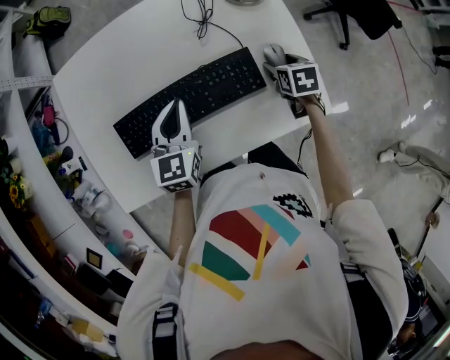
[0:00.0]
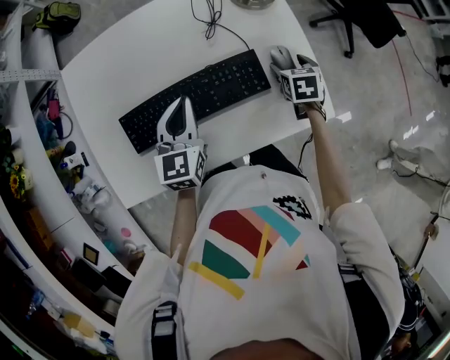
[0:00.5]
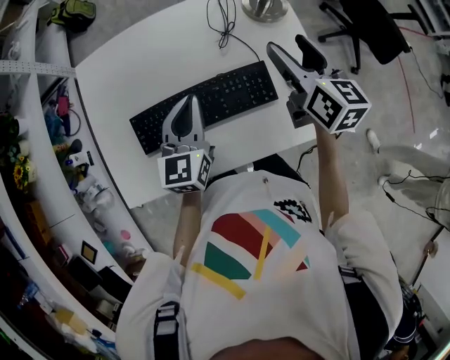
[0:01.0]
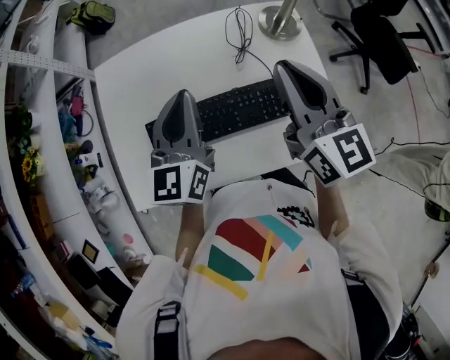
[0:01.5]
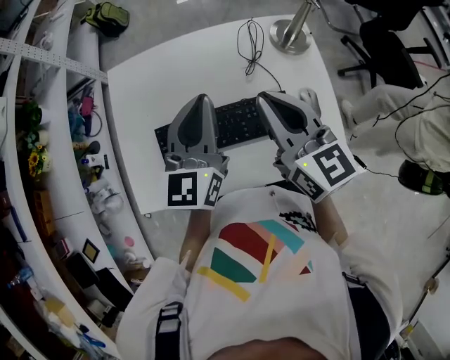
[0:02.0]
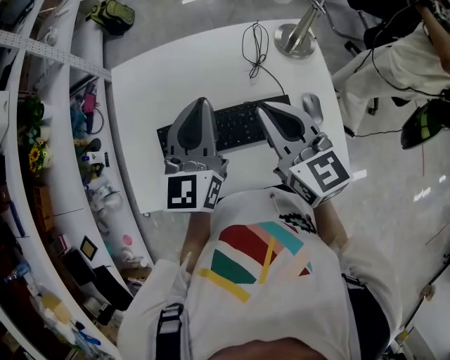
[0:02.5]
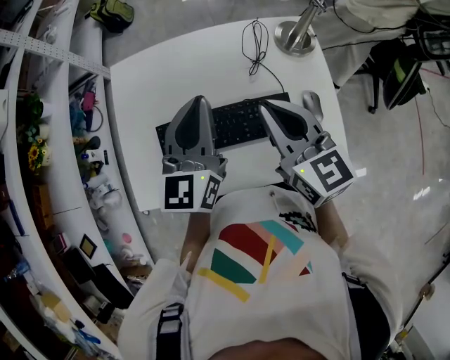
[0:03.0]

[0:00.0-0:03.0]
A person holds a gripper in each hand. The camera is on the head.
0:00.0 to 0:01.5: The left gripper heads upward, covering approximately 15 cm, and changes its angle by approximately 20 degrees. Meanwhile the right gripper is displaced upward and to the left by approximately 35 cm, tilts its fingers about 60 degrees upward, and closes.
0:01.5 to 0:03.0: The right gripper is displaced to the left by roughly 5 cm.

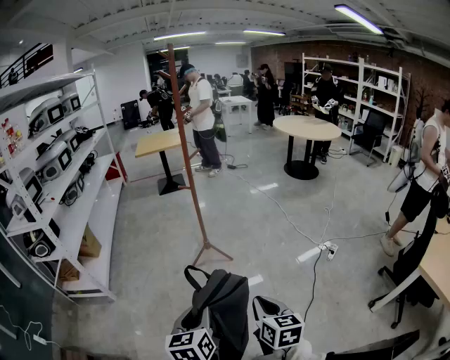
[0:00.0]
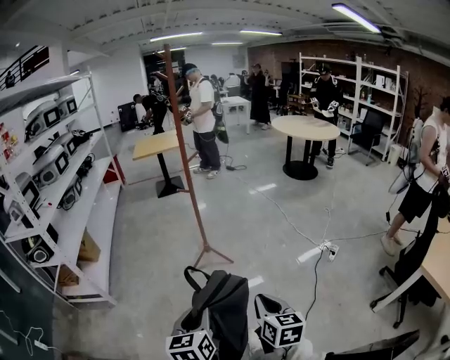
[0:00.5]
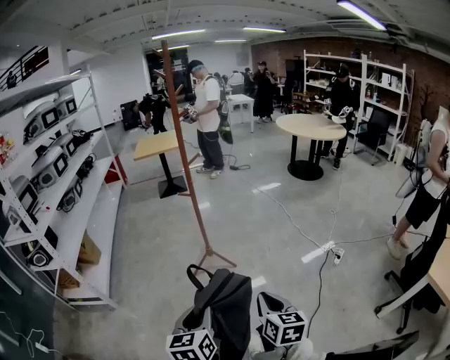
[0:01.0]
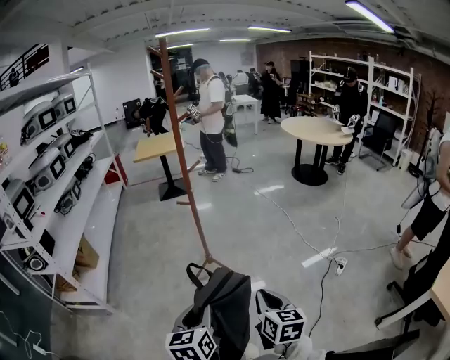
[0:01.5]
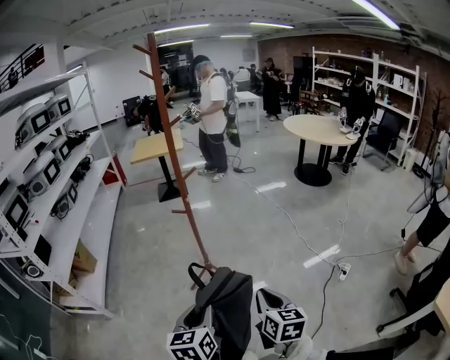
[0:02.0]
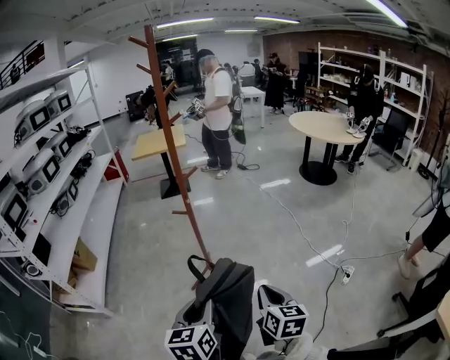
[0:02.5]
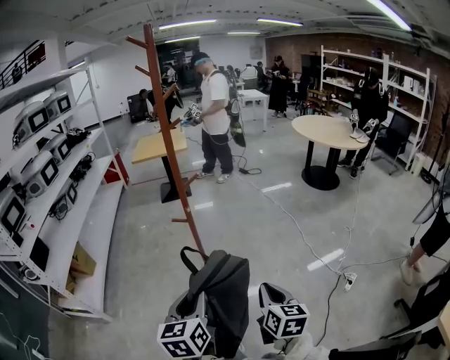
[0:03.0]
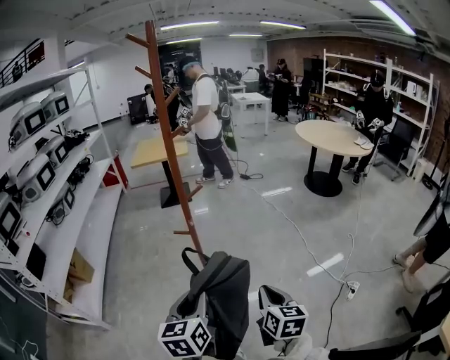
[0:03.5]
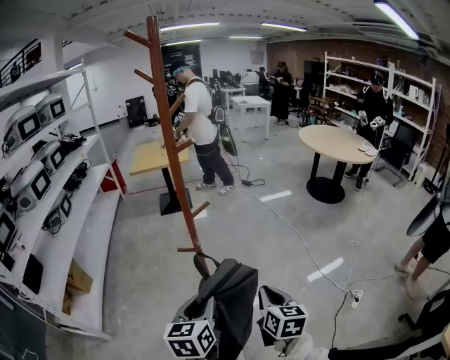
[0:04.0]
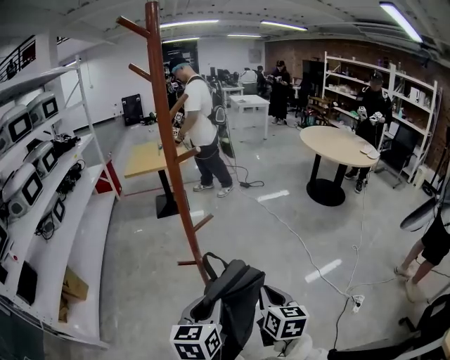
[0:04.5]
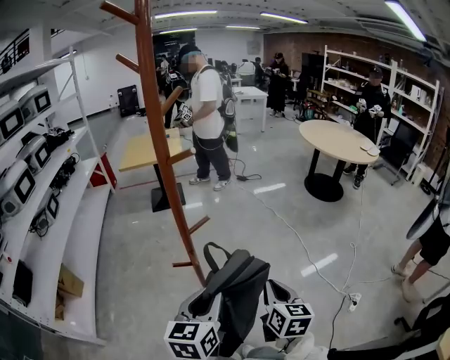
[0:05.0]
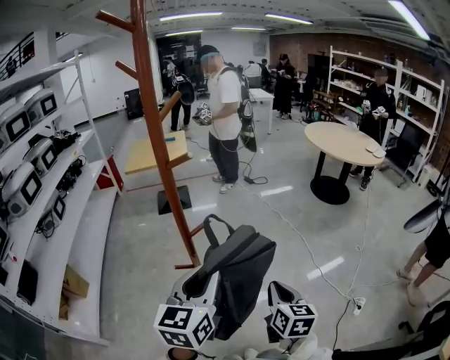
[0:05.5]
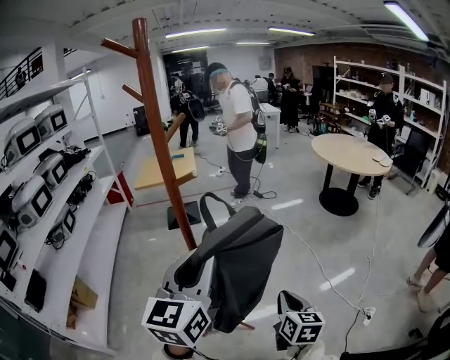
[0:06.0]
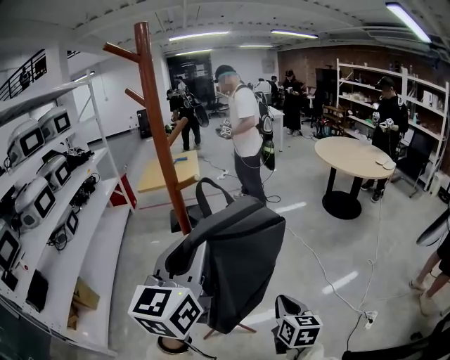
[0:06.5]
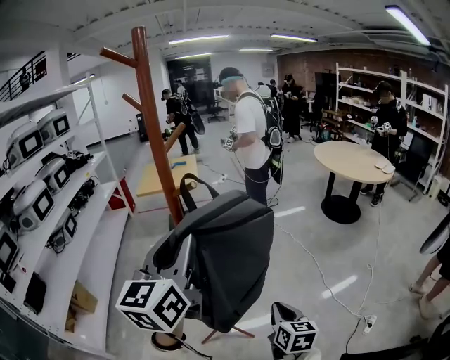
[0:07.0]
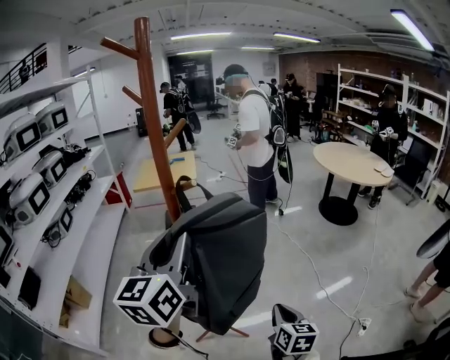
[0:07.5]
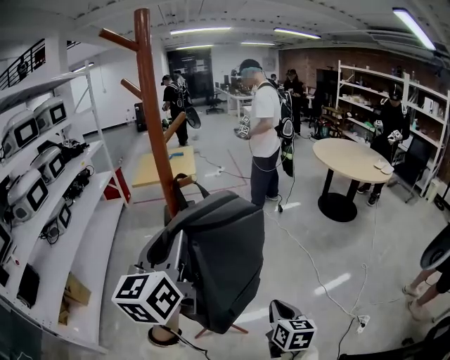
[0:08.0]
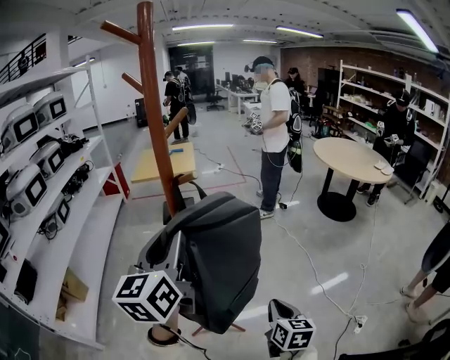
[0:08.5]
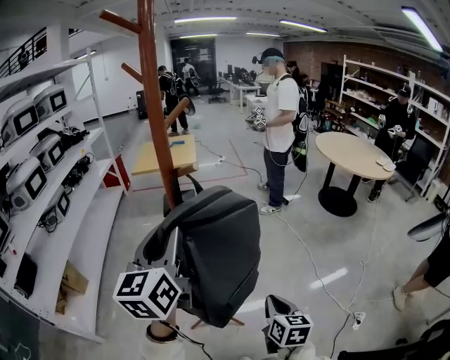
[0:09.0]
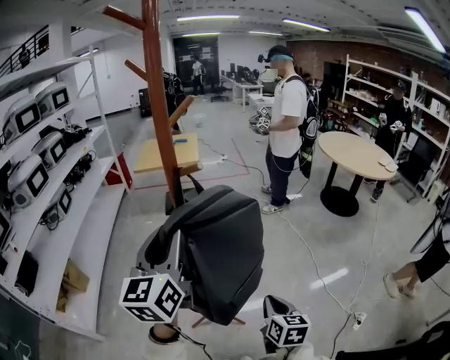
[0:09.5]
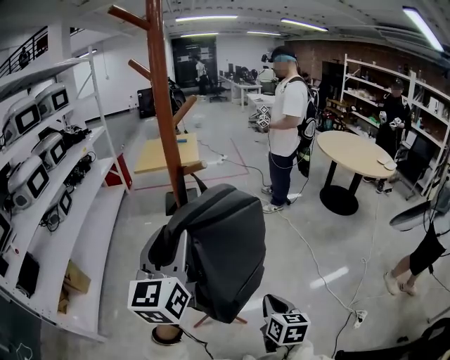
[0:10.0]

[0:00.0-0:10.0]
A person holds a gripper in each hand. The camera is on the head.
0:00.0 to 0:02.0: The grippers both shift forward by about 25 cm.
0:02.0 to 0:04.0: The grippers both shift forward by some 25 cm.
0:04.0 to 0:06.0: The right gripper is displaced forward by about 10 cm. The left gripper is displaced upward and forward by approximately 25 cm, and swivels about 30 degrees.
0:06.0 to 0:08.0: The left gripper heads to the left and forward, covering roughly 10 cm.
0:08.0 to 0:10.0: The grippers stay close to where they were, moving slightly.

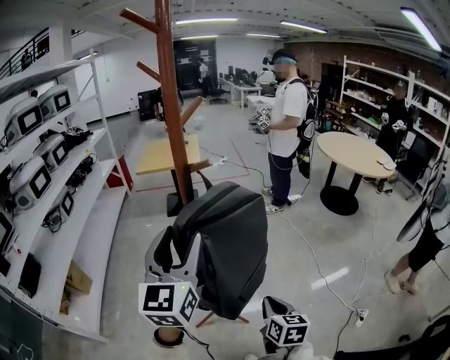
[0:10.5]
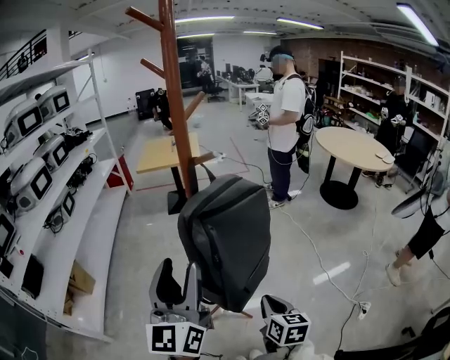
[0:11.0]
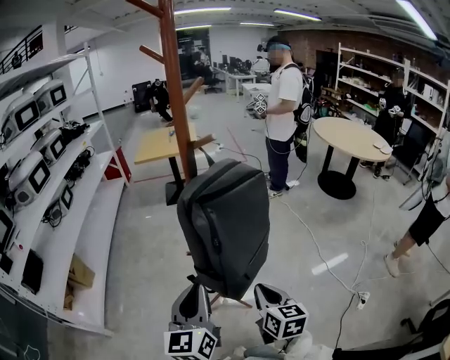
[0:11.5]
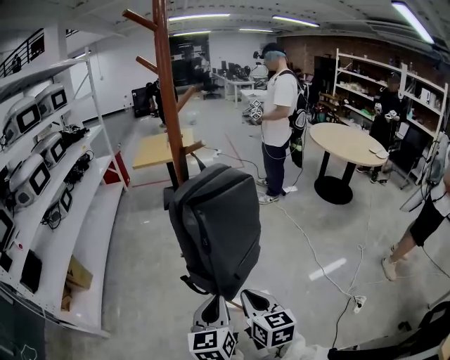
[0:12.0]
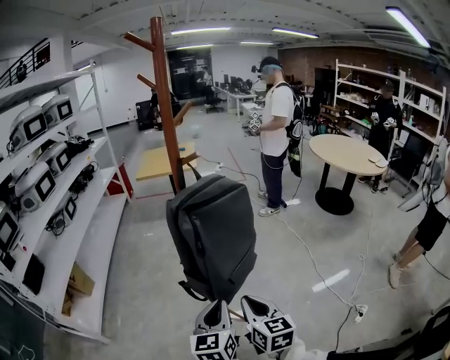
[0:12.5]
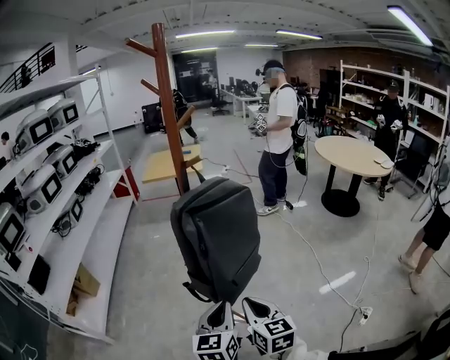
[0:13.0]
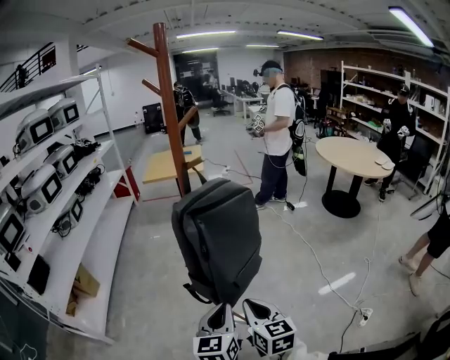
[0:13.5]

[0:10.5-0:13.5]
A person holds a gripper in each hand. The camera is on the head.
0:10.5 to 0:12.0: The left gripper moves downward and backward, roughly 25 cm, rotates approximately 30 degrees, and closes its fingers, while the right gripper moves to the left, some 5 cm.
0:12.0 to 0:13.5: There are only small adjustments of the grippers.

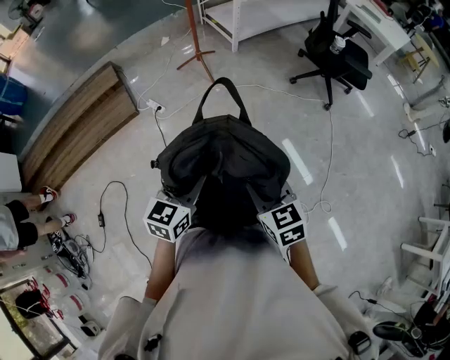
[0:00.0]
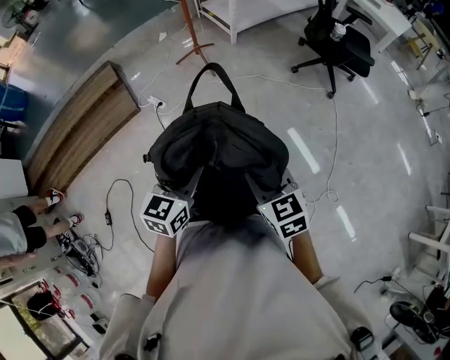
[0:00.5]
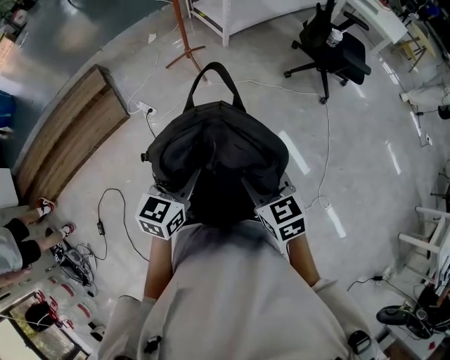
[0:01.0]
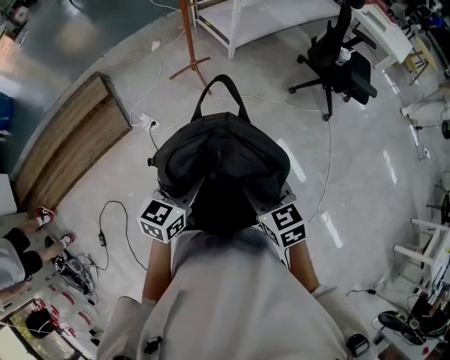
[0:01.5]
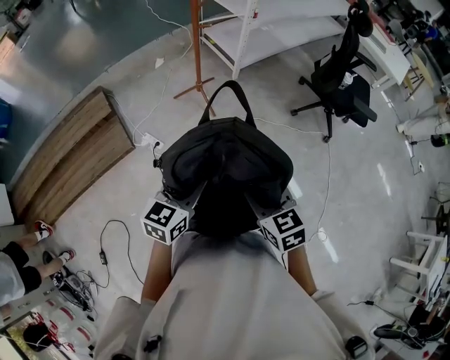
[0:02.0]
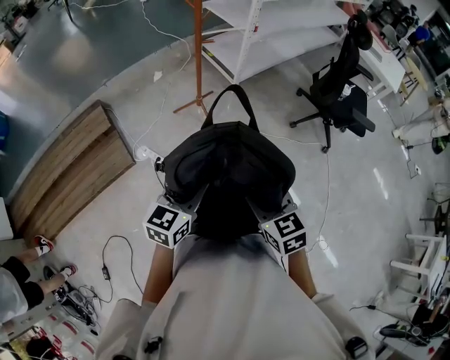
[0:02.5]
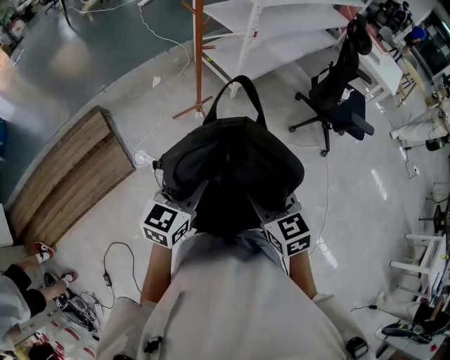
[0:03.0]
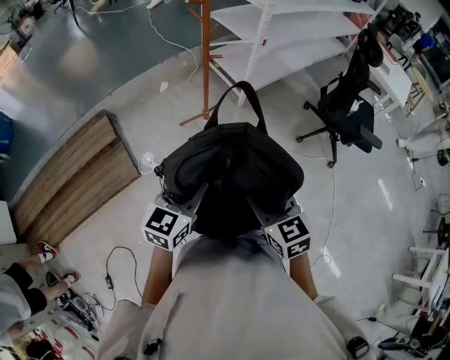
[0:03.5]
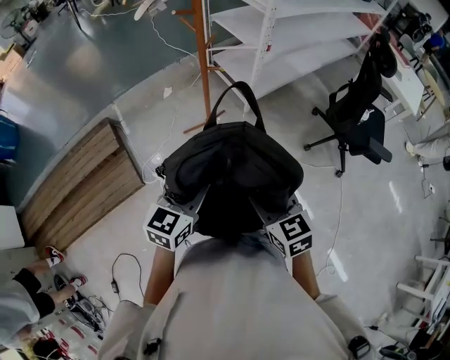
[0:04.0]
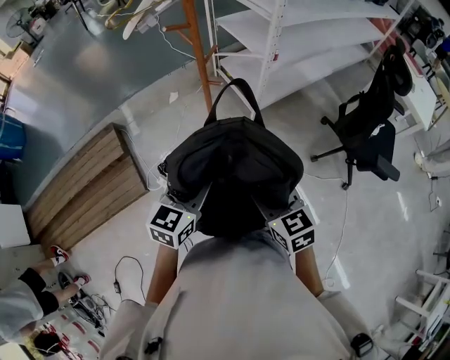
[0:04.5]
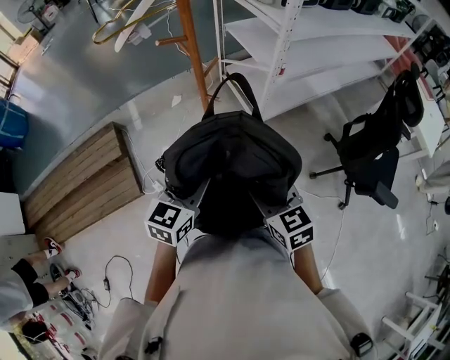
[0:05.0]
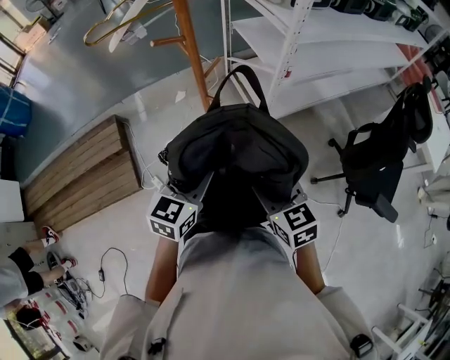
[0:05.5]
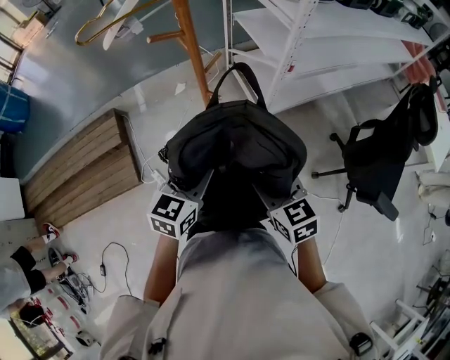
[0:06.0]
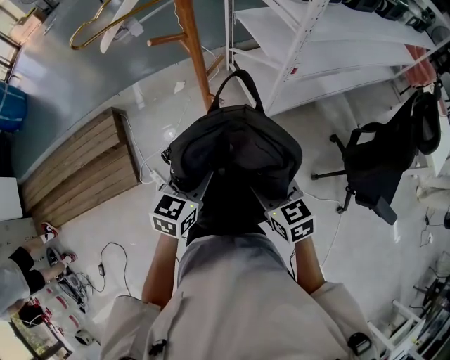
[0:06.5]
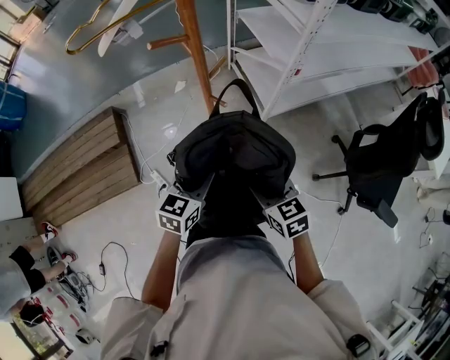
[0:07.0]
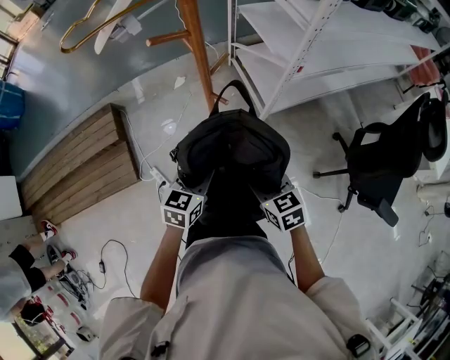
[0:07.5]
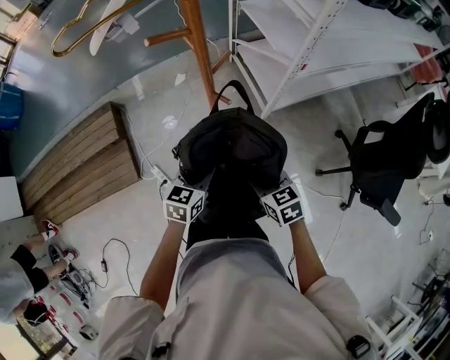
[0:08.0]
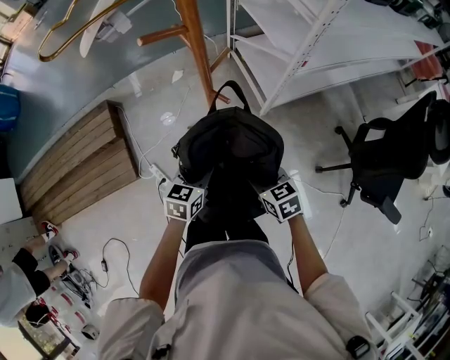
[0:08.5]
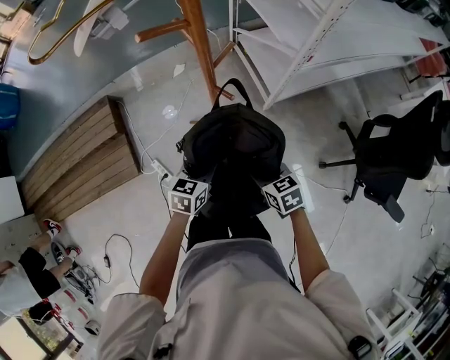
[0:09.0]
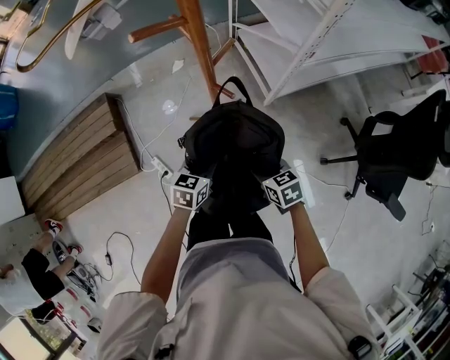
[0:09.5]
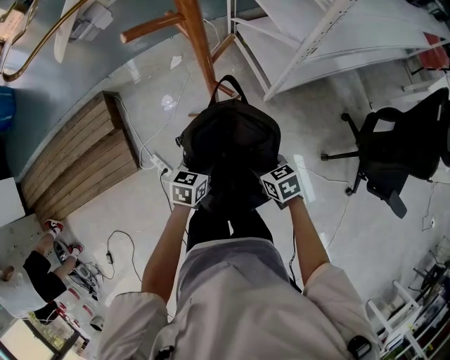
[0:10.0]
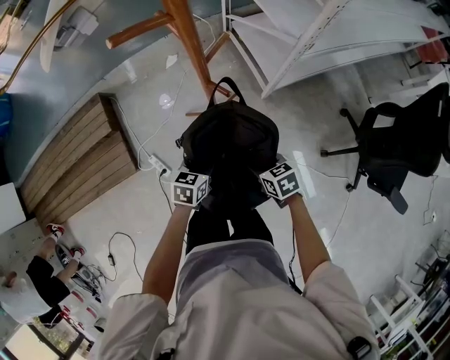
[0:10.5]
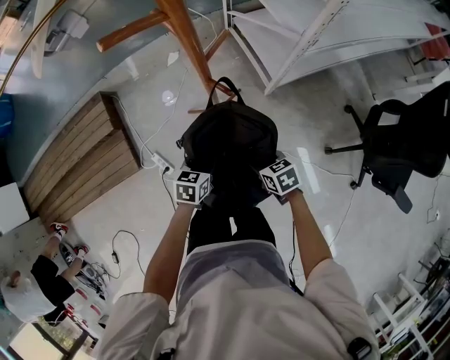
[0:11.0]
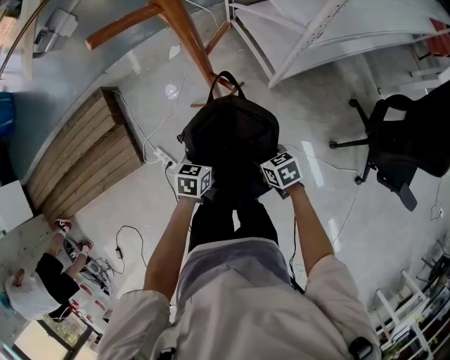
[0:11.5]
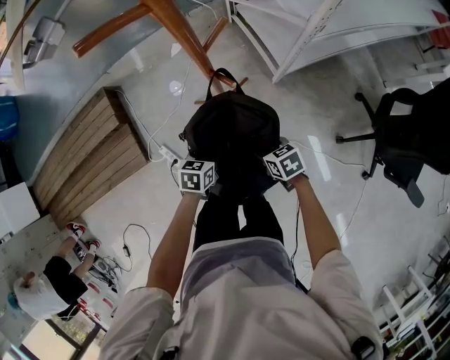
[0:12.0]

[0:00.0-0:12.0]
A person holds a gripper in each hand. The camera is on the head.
0:00.0 to 0:02.0: The right gripper goes some 30 cm forward and to the left, while the left gripper moves forward, approximately 30 cm.
0:02.0 to 0:04.0: The grippers both shift forward by roughly 25 cm.
0:04.0 to 0:06.0: Both grippers travel together forward, some 25 cm.
0:06.0 to 0:08.0: The two grippers go some 15 cm downward and forward.
0:08.0 to 0:10.0: Both grippers move downward, about 10 cm.
0:10.0 to 0:12.0: Both grippers travel together downward, approximately 10 cm.
